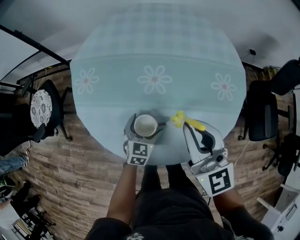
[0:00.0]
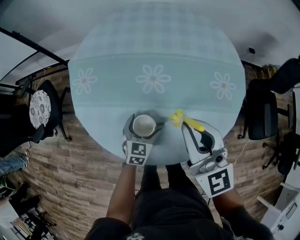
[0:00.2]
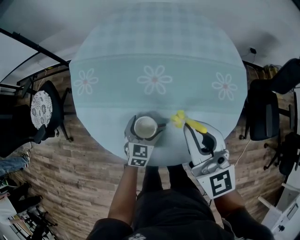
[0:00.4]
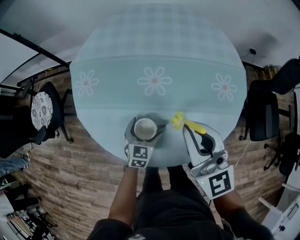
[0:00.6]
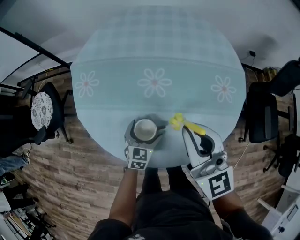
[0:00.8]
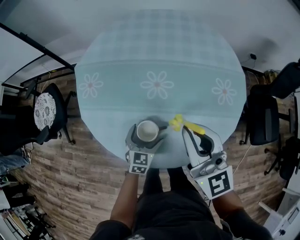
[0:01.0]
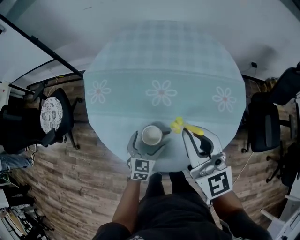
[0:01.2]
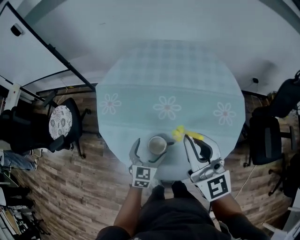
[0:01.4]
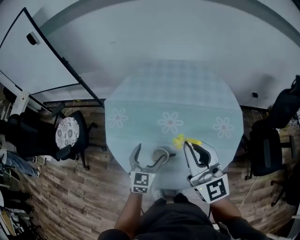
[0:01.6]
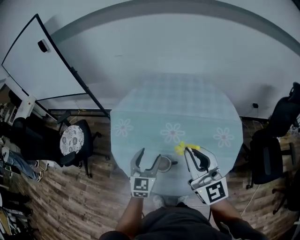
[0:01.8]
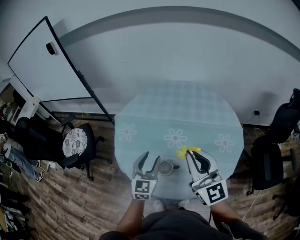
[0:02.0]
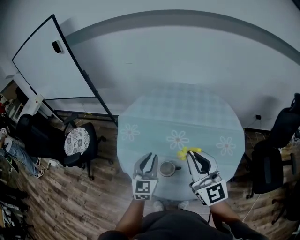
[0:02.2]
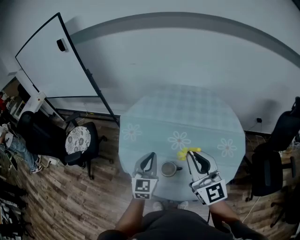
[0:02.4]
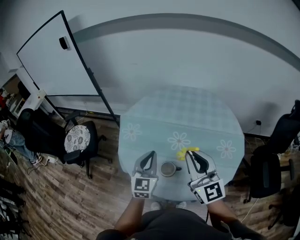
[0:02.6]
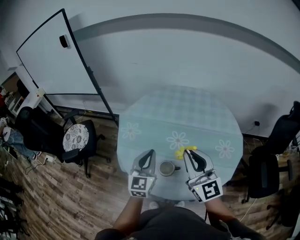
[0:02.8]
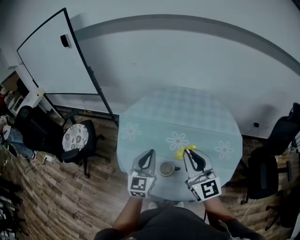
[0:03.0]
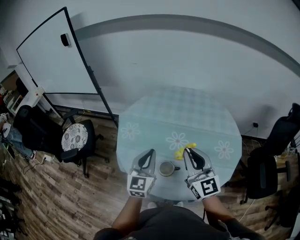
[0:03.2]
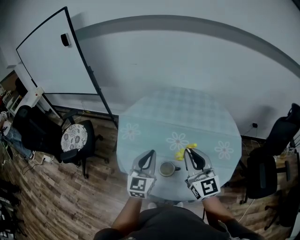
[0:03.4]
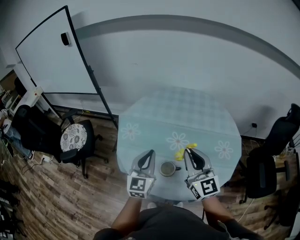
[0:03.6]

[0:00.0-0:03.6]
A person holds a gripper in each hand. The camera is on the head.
0:00.0 to 0:01.8: The left gripper goes about 30 cm upward, changes its angle by some 30 degrees, and closes its fingers, while the right gripper goes about 20 cm upward.
0:01.8 to 0:03.6: The right gripper goes roughly 5 cm to the left. The left gripper travels upward and to the left by roughly 10 cm, and closes its fingers.

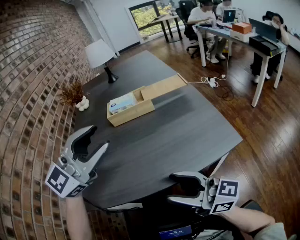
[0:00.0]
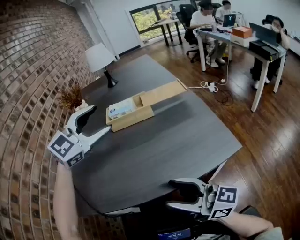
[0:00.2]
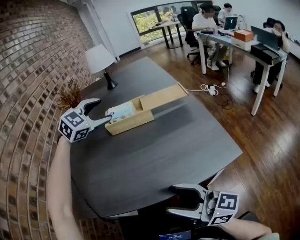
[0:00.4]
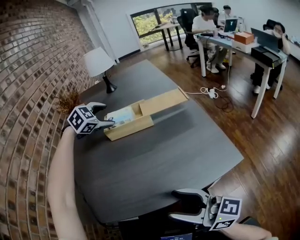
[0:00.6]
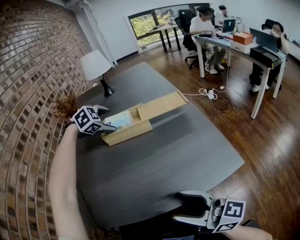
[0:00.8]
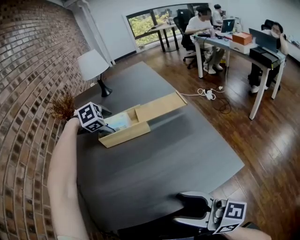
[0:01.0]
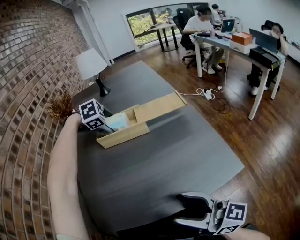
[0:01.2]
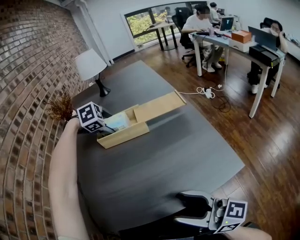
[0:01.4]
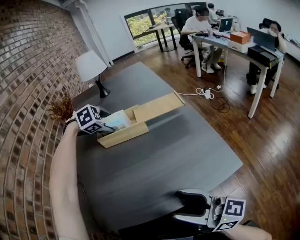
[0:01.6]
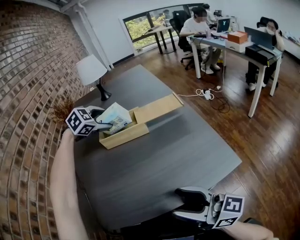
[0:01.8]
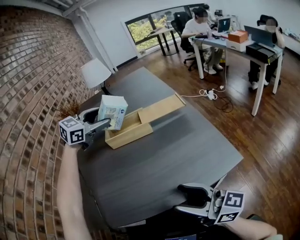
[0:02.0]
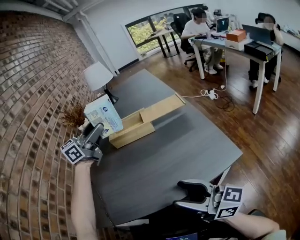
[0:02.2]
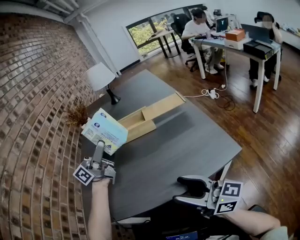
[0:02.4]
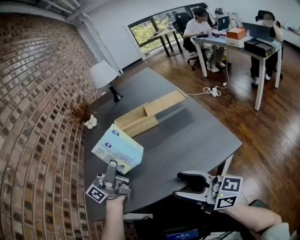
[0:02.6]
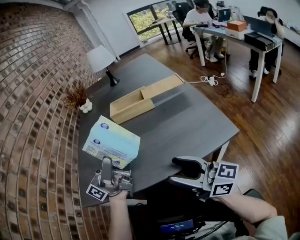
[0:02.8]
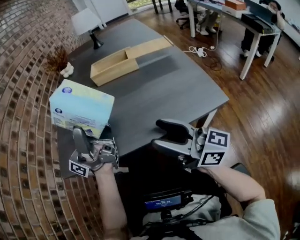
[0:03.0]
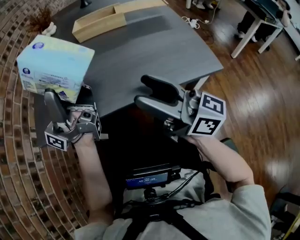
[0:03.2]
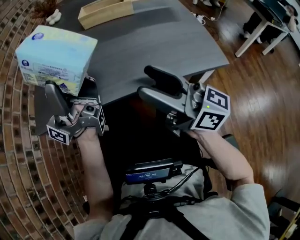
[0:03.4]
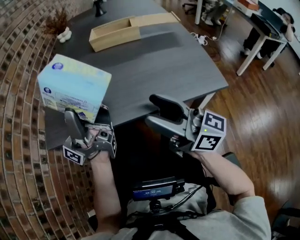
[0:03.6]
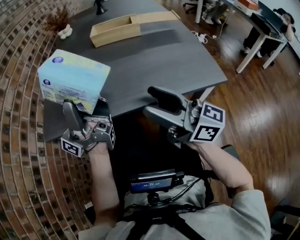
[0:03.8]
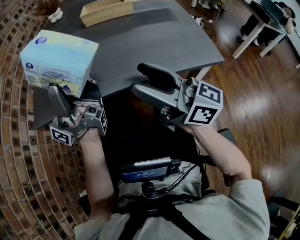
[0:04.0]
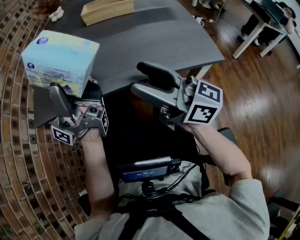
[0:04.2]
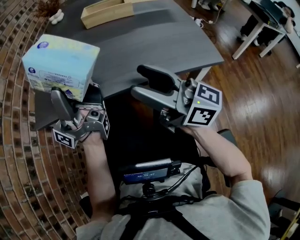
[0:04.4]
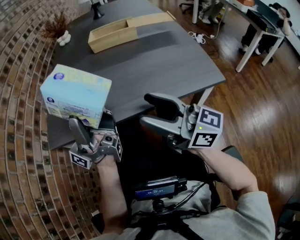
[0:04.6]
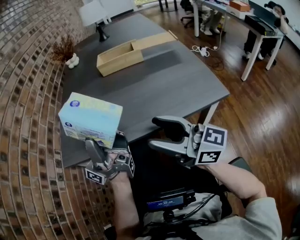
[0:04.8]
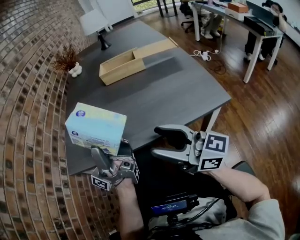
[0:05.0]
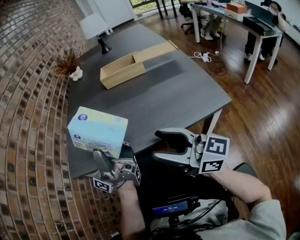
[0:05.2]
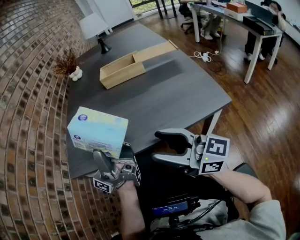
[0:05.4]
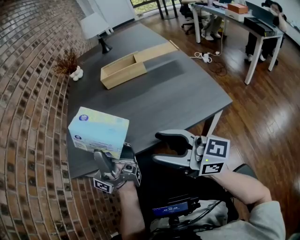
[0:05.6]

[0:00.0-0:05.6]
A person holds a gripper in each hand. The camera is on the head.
0:00.0 to 0:01.4: The left gripper moves approximately 35 cm, angles its fingers downward, by roughly 70 degrees, and opens its fingers.
0:01.4 to 0:02.8: The left gripper is displaced backward by some 35 cm, and tips its fingers upward by approximately 120 degrees.
0:02.8 to 0:04.2: The left gripper travels backward by roughly 5 cm, and rotates about 20 degrees.
0:04.2 to 0:05.6: There are only small adjustments of the grippers.

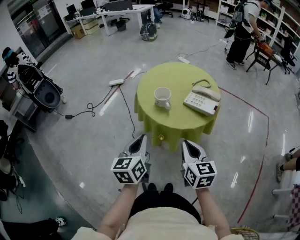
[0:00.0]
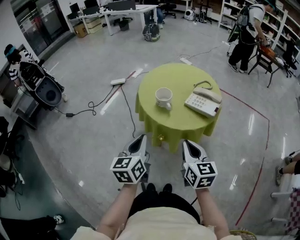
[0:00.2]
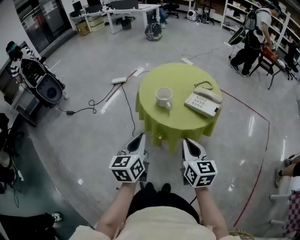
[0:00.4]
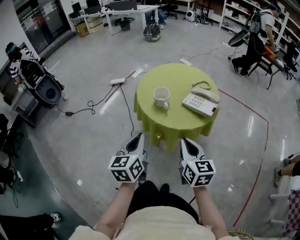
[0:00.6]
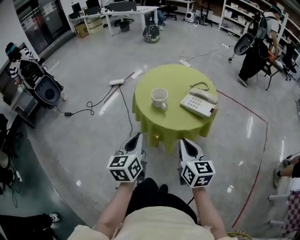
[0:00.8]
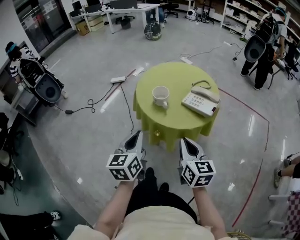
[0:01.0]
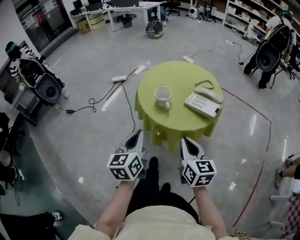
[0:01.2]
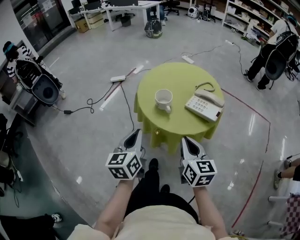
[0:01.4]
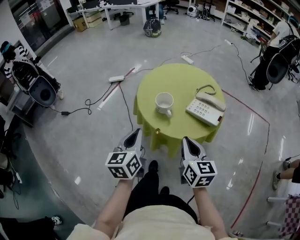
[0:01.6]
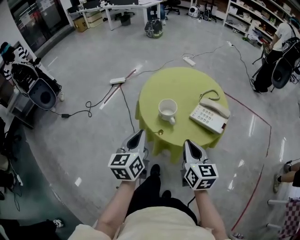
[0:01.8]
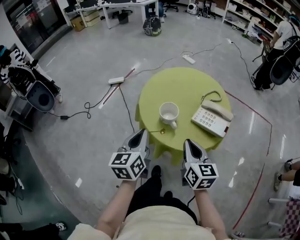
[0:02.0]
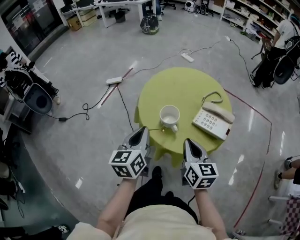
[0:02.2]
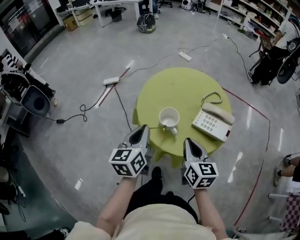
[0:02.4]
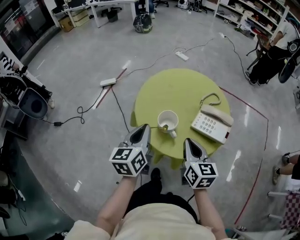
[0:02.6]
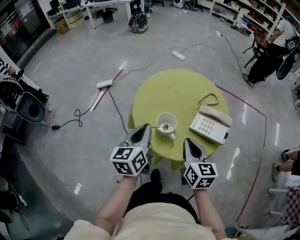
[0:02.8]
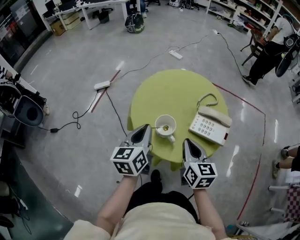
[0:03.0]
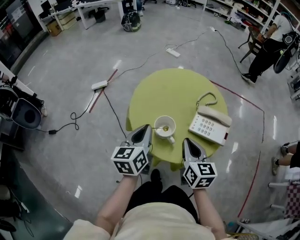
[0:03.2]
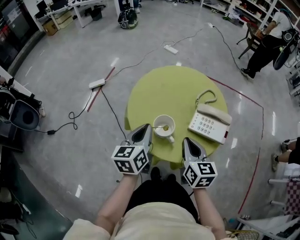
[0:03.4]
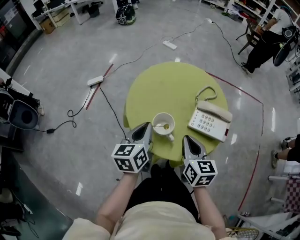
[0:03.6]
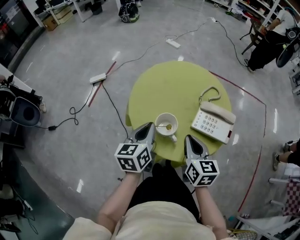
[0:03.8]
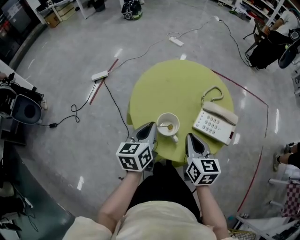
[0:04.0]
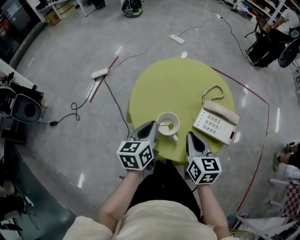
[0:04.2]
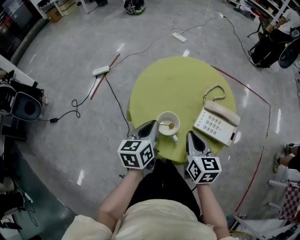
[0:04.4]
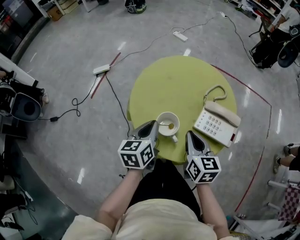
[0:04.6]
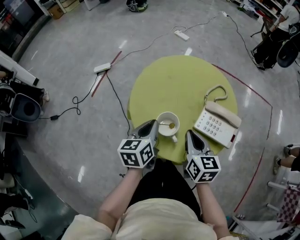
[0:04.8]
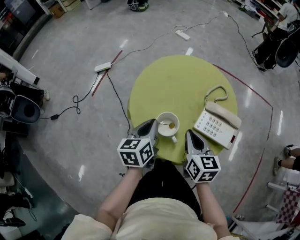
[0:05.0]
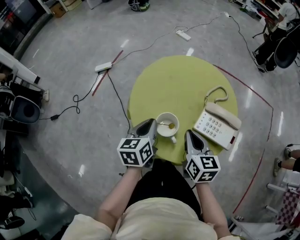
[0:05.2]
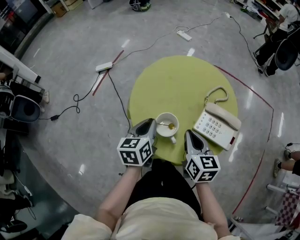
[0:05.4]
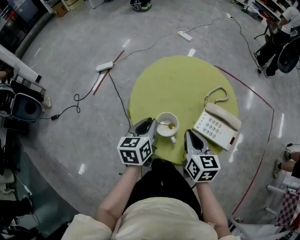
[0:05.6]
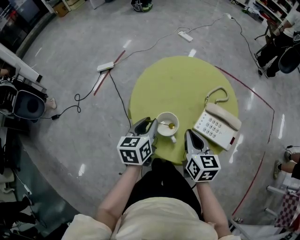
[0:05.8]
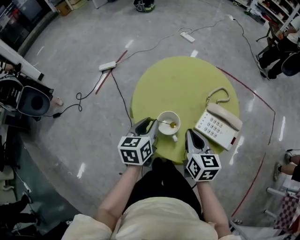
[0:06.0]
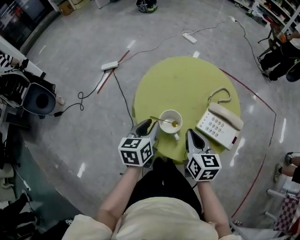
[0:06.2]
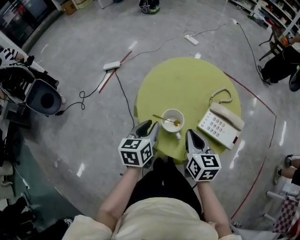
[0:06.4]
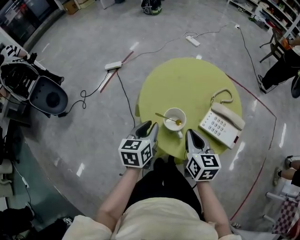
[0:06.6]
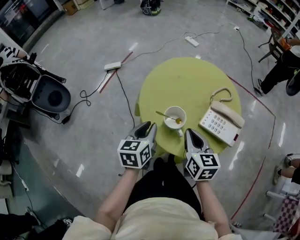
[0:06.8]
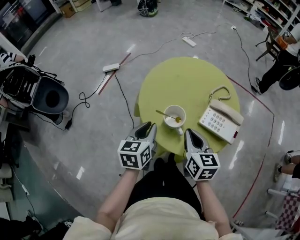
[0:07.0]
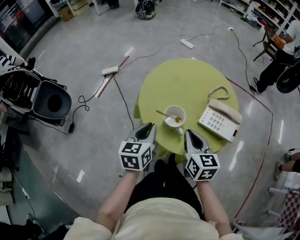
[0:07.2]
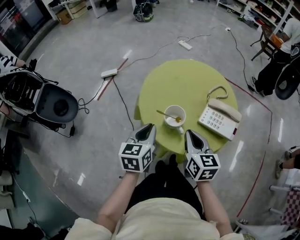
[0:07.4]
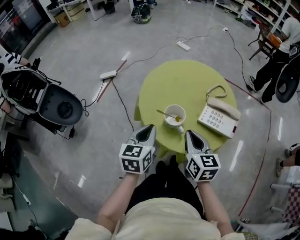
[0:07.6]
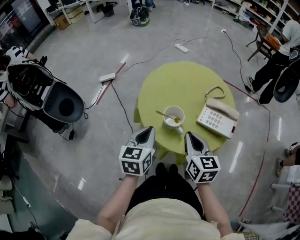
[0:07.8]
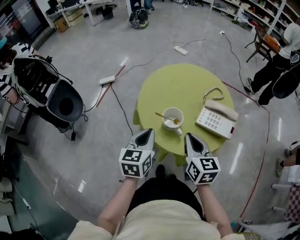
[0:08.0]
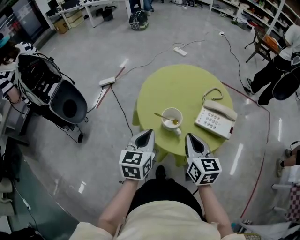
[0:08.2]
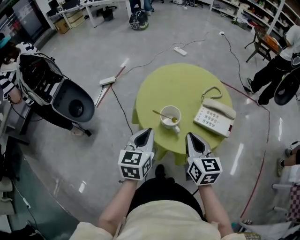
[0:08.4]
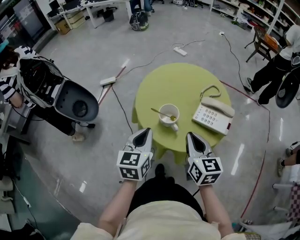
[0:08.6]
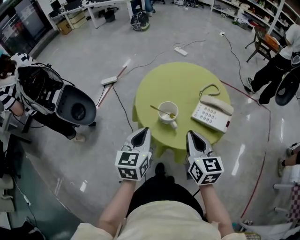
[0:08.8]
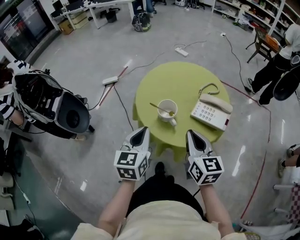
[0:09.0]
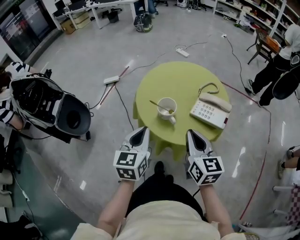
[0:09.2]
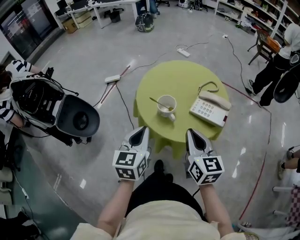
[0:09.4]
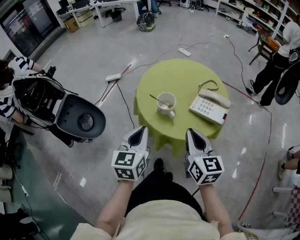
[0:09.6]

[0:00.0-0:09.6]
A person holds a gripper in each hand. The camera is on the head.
0:00.0 to 0:01.6: The grippers both shift forward by some 10 cm.
0:01.6 to 0:03.2: The grippers both shift forward by about 15 cm.
0:03.2 to 0:04.8: The right gripper is displaced forward by about 5 cm. The left gripper is displaced downward by approximately 5 cm.
0:04.8 to 0:06.4: The left gripper opens its fingers.
0:06.4 to 0:08.0: The left gripper heads backward, covering some 5 cm, and closes its fingers; the right gripper ends up some 5 cm from where it was.
0:08.0 to 0:09.6: Both grippers move backward and upward, roughly 10 cm.

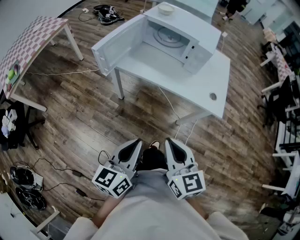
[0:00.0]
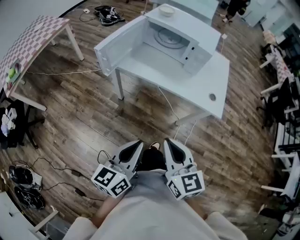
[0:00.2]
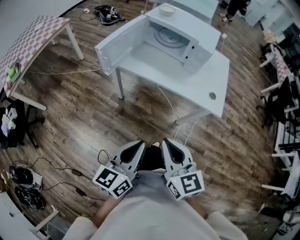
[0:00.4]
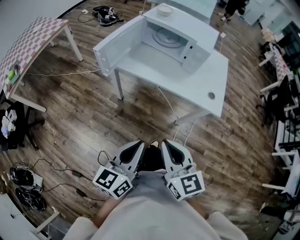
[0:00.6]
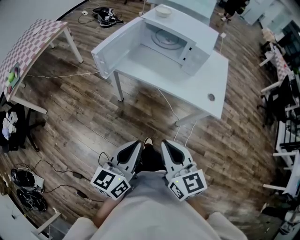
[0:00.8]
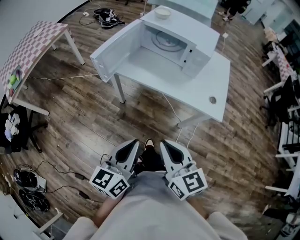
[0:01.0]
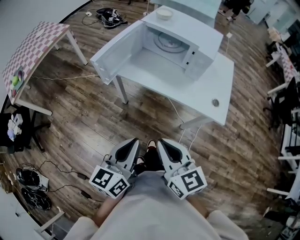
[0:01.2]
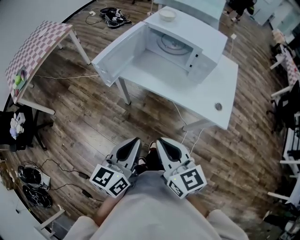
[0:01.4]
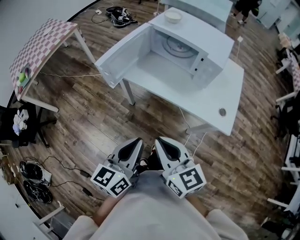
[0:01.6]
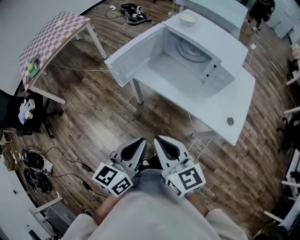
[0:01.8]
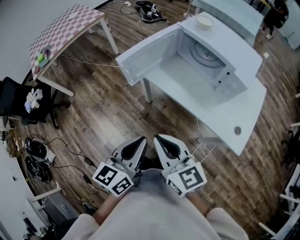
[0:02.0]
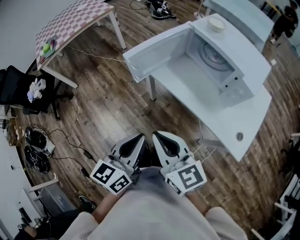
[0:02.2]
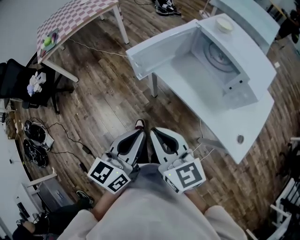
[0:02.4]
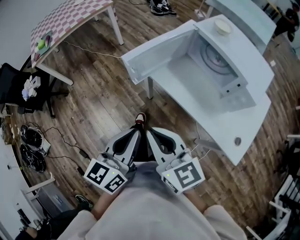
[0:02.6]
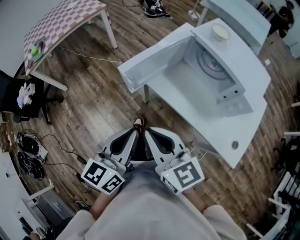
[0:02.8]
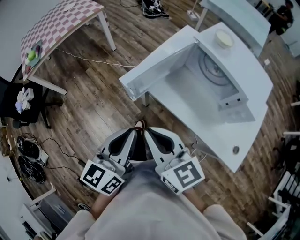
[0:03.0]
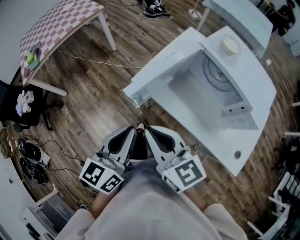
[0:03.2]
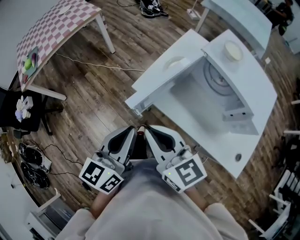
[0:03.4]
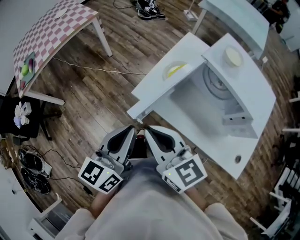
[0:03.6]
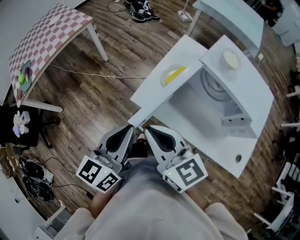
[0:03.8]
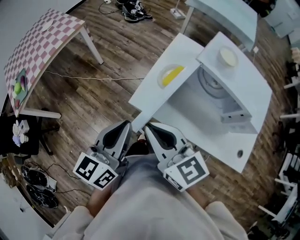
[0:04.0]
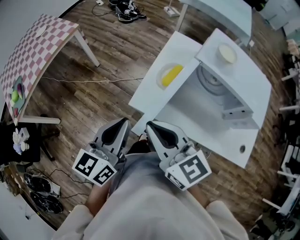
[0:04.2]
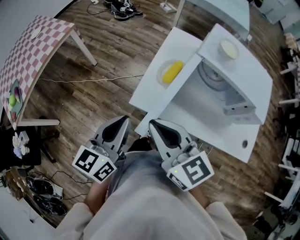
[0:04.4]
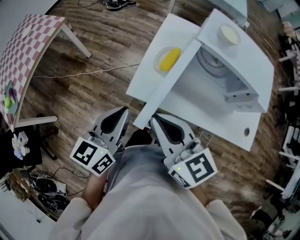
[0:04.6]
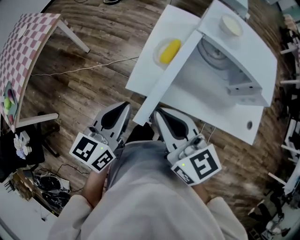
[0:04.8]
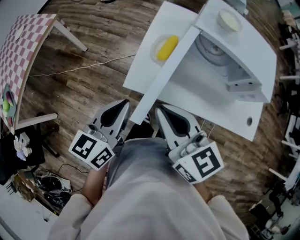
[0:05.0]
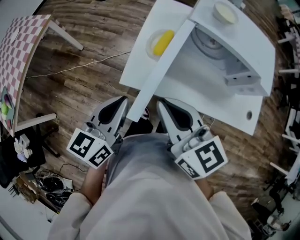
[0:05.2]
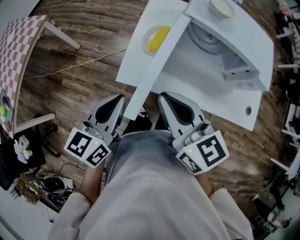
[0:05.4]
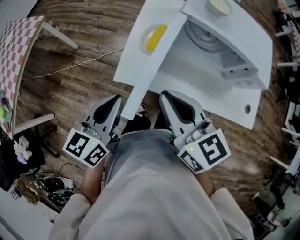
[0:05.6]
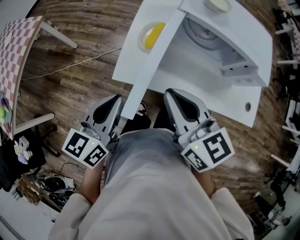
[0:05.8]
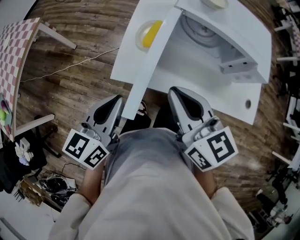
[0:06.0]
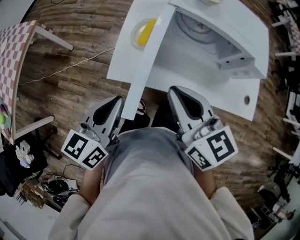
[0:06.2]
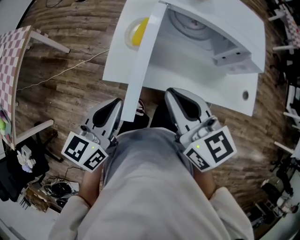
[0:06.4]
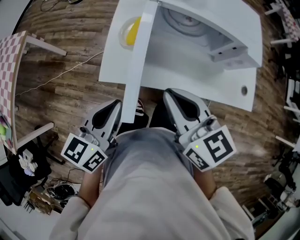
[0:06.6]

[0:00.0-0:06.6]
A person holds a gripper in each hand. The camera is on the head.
0:00.0 to 0:01.6: Both grippers travel together forward, about 10 cm.
0:01.6 to 0:03.2: The two grippers go some 25 cm forward and to the left.
0:03.2 to 0:05.0: Both grippers move forward, approximately 15 cm. The left gripper changes its angle by roughly 30 degrees, while the right gripper turns by roughly 20 degrees.
0:05.0 to 0:06.6: The right gripper travels to the right by approximately 10 cm. The left gripper heads to the right, covering approximately 5 cm.
